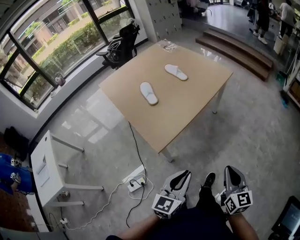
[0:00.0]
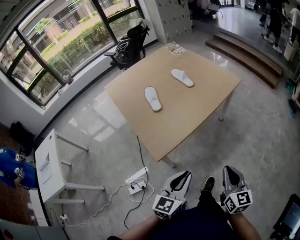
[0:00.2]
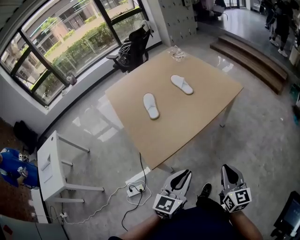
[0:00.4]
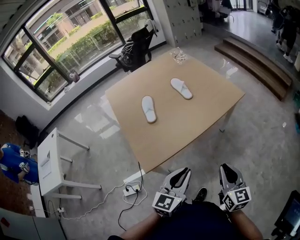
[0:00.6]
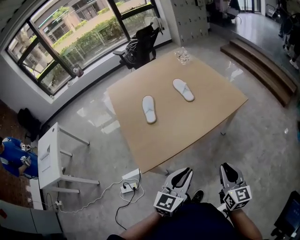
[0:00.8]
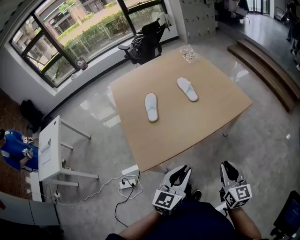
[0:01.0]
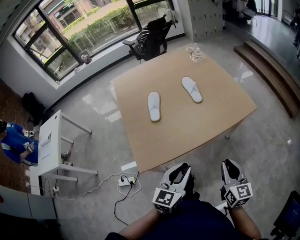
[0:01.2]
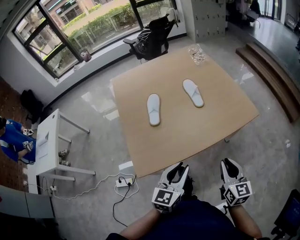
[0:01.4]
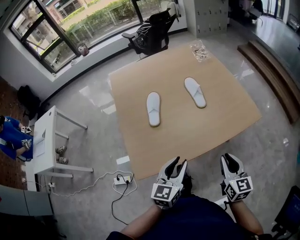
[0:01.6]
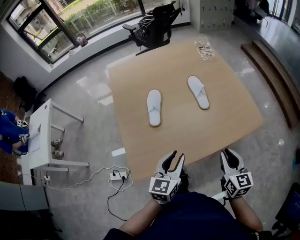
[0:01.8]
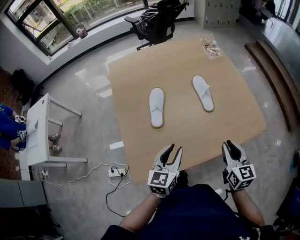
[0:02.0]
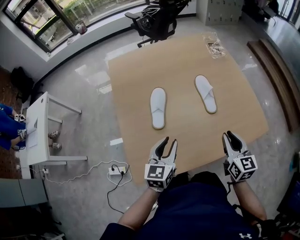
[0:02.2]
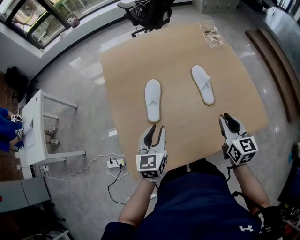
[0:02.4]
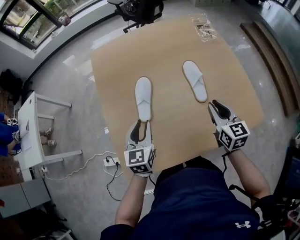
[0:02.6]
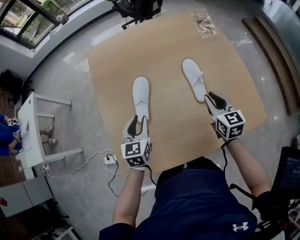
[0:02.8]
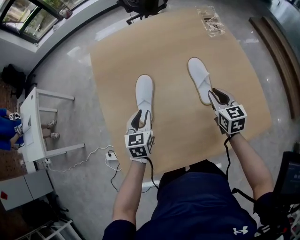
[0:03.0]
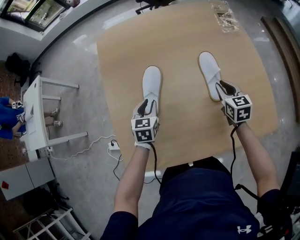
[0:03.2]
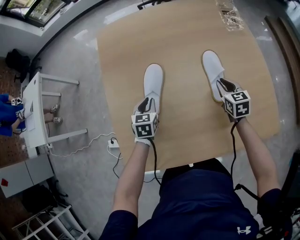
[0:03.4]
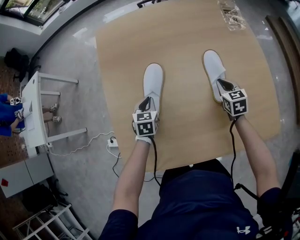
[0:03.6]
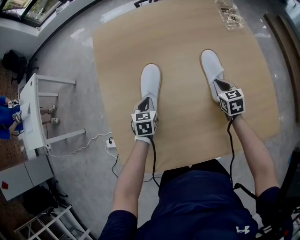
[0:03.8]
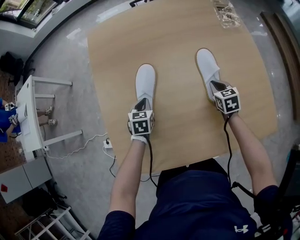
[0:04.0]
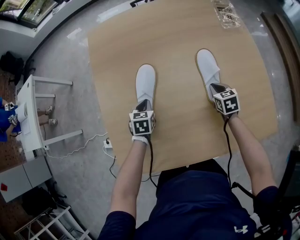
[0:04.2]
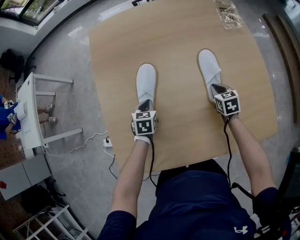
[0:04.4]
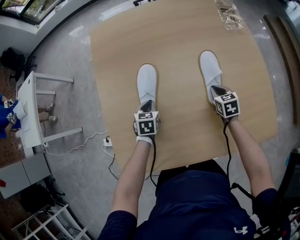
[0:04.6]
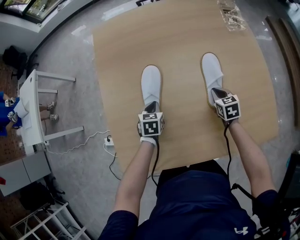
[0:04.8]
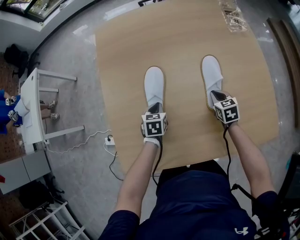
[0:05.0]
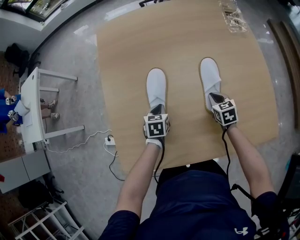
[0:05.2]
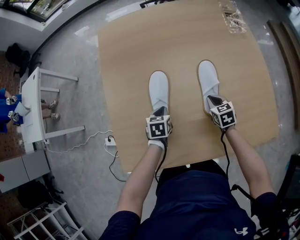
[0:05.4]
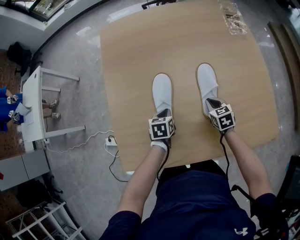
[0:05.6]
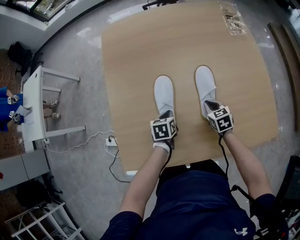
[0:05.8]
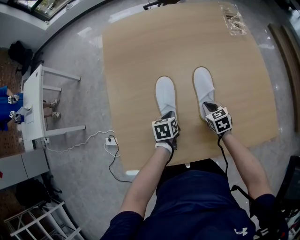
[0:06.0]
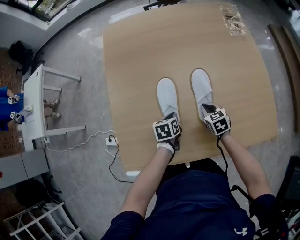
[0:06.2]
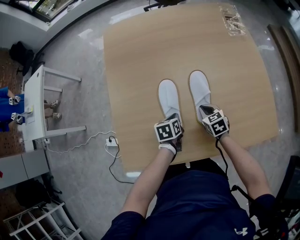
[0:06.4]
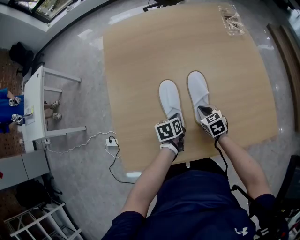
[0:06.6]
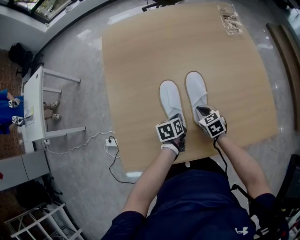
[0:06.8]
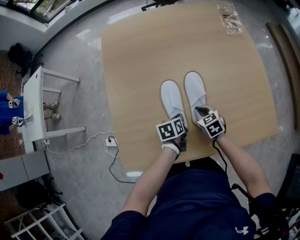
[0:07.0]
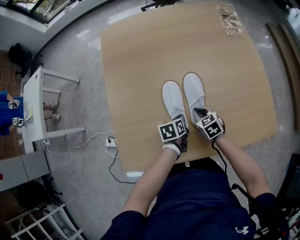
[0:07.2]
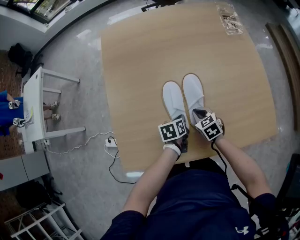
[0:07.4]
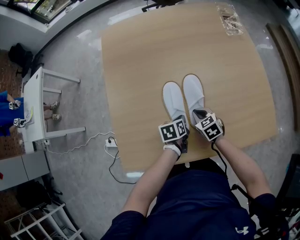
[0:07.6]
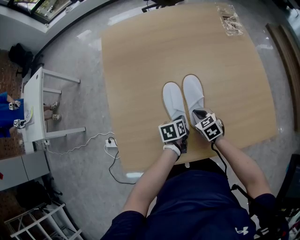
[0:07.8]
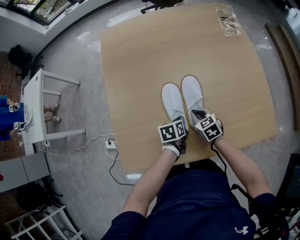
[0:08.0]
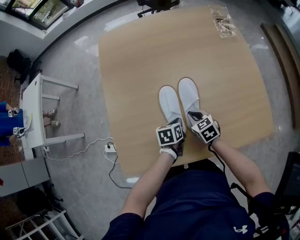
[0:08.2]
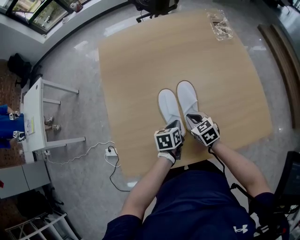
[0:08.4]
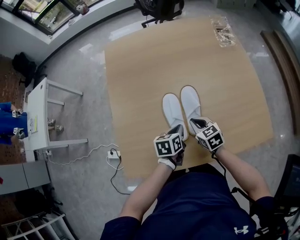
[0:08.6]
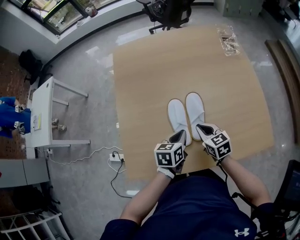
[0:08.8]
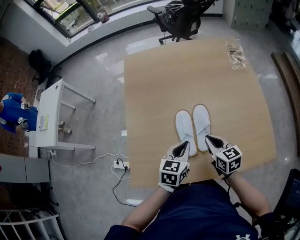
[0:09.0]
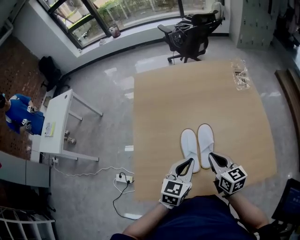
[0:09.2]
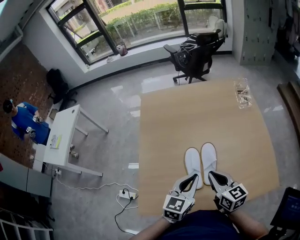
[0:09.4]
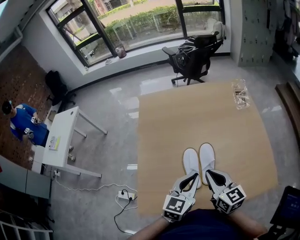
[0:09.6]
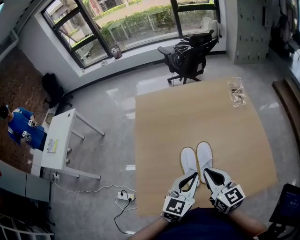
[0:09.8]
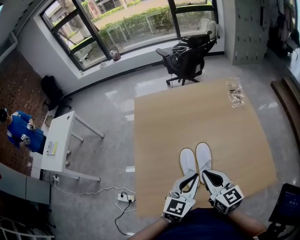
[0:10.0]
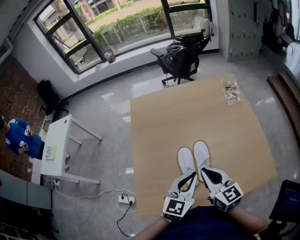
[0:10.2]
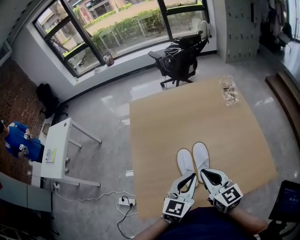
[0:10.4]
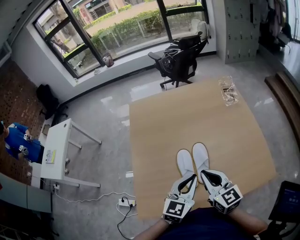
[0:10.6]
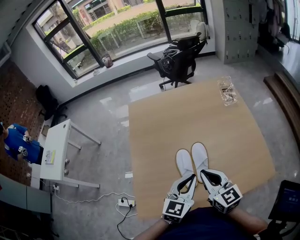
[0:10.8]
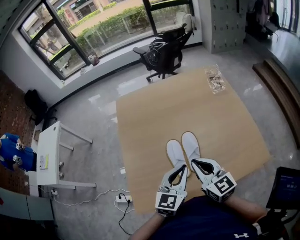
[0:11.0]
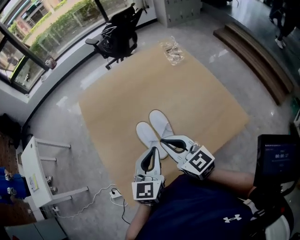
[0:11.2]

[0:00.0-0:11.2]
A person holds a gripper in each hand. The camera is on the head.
0:00.0 to 0:01.6: The right gripper moves about 40 cm, and changes its angle by approximately 30 degrees, while the left gripper changes place by approximately 35 cm, and turns by some 30 degrees.
0:01.6 to 0:03.2: The right gripper heads forward, covering approximately 40 cm, and turns by roughly 30 degrees; the left gripper heads forward, downward and to the left, covering about 40 cm, and rotates roughly 30 degrees.
0:03.2 to 0:04.8: Both grippers travel together downward, some 10 cm. The left gripper closes up.
0:04.8 to 0:06.4: The left gripper is displaced backward and to the right by some 10 cm, and changes its angle by about 30 degrees, while the right gripper heads to the left and backward, covering about 10 cm.
0:06.4 to 0:08.0: The grippers make only small movements.
0:08.0 to 0:09.6: The two grippers go some 30 cm upward. The left gripper points its fingers roughly 30 degrees further upward. The right gripper tips its fingers upward by roughly 40 degrees.
0:09.6 to 0:11.2: There are only small adjustments of the grippers.

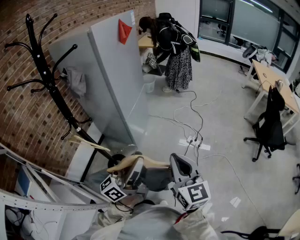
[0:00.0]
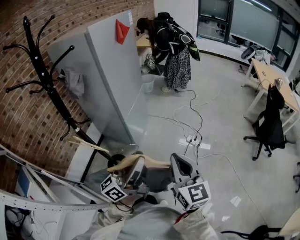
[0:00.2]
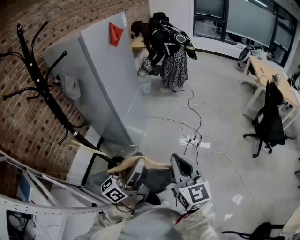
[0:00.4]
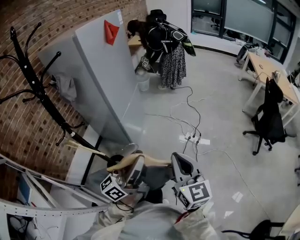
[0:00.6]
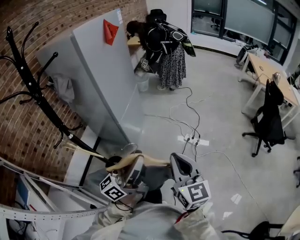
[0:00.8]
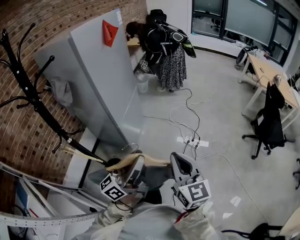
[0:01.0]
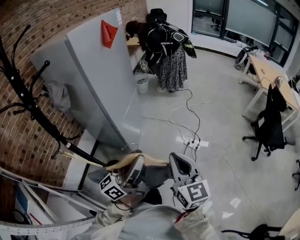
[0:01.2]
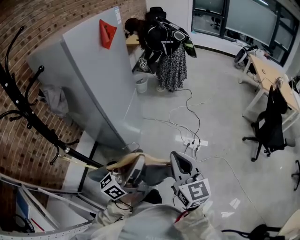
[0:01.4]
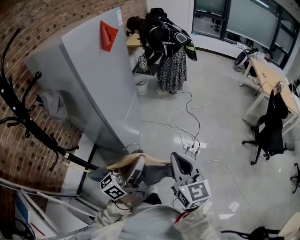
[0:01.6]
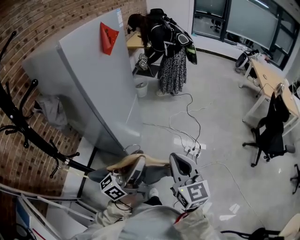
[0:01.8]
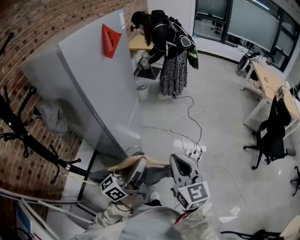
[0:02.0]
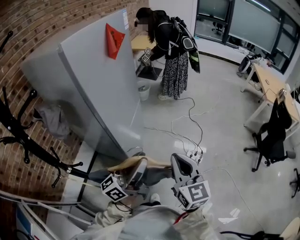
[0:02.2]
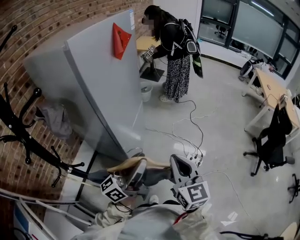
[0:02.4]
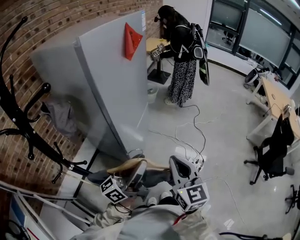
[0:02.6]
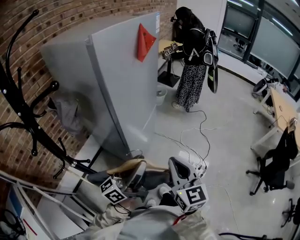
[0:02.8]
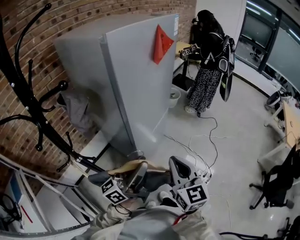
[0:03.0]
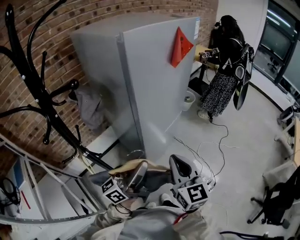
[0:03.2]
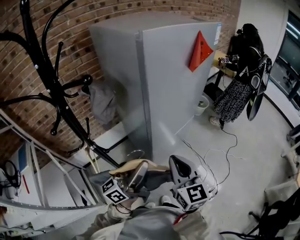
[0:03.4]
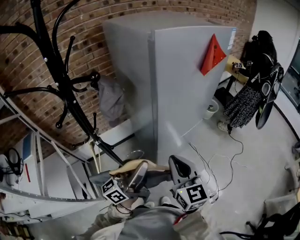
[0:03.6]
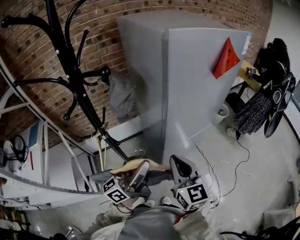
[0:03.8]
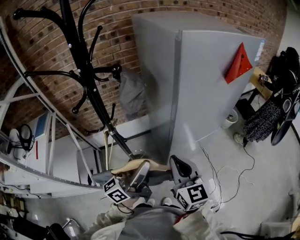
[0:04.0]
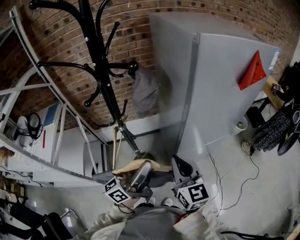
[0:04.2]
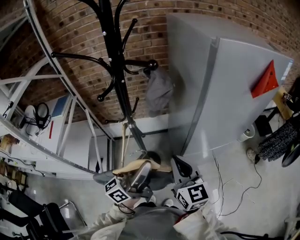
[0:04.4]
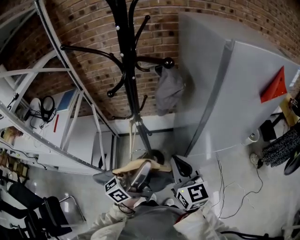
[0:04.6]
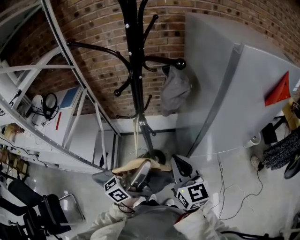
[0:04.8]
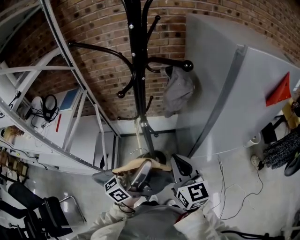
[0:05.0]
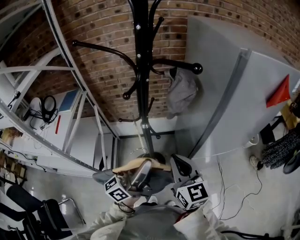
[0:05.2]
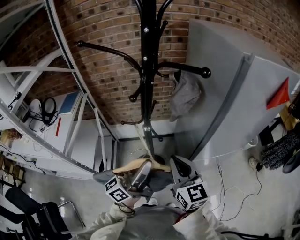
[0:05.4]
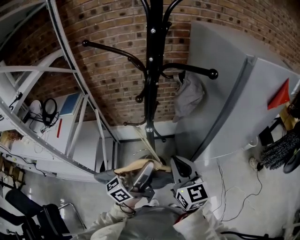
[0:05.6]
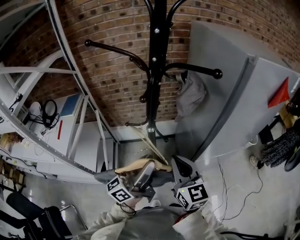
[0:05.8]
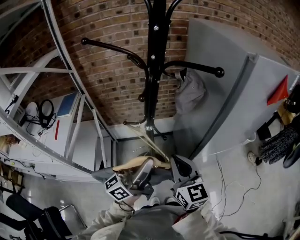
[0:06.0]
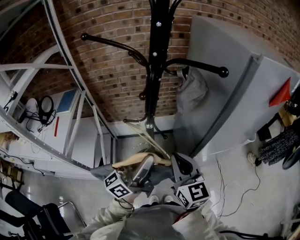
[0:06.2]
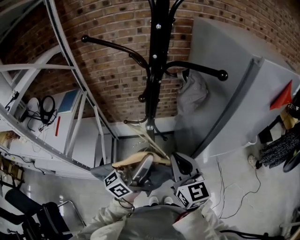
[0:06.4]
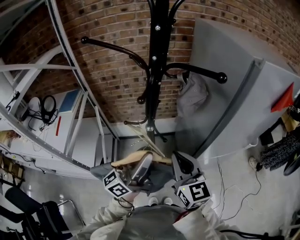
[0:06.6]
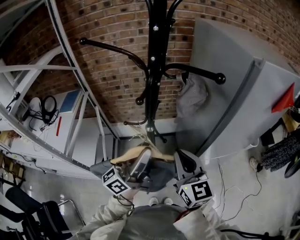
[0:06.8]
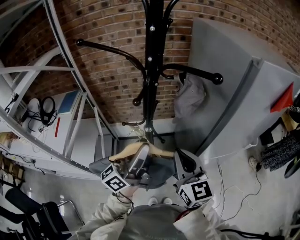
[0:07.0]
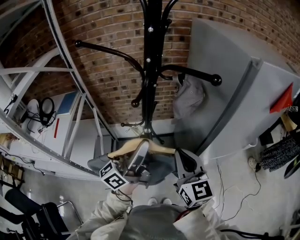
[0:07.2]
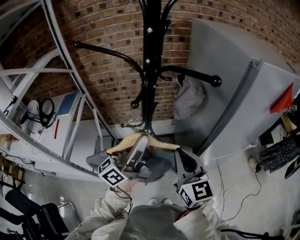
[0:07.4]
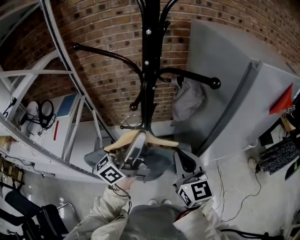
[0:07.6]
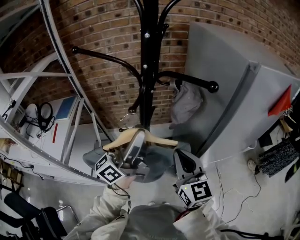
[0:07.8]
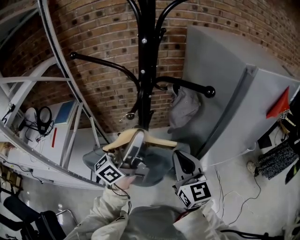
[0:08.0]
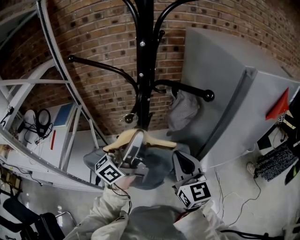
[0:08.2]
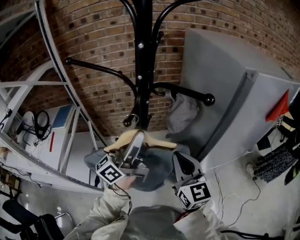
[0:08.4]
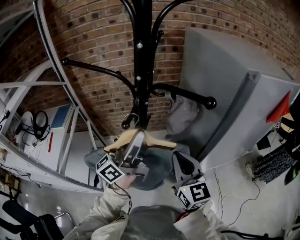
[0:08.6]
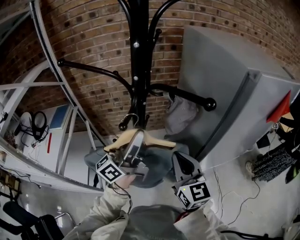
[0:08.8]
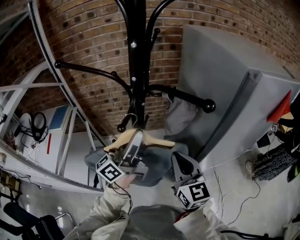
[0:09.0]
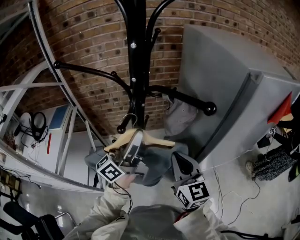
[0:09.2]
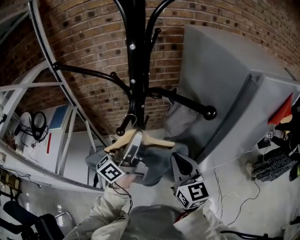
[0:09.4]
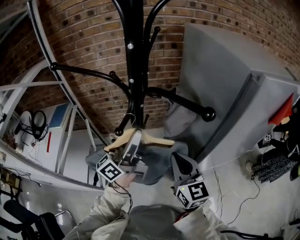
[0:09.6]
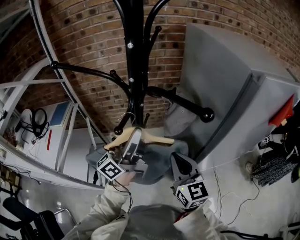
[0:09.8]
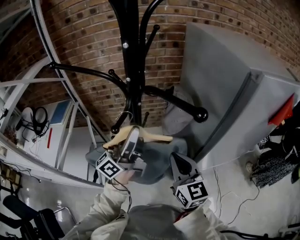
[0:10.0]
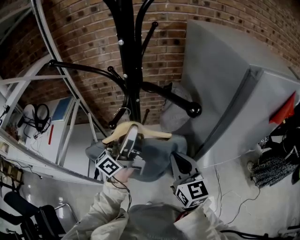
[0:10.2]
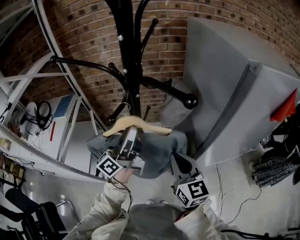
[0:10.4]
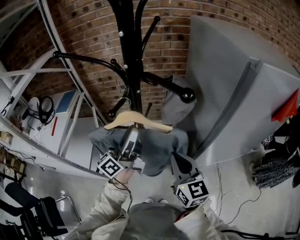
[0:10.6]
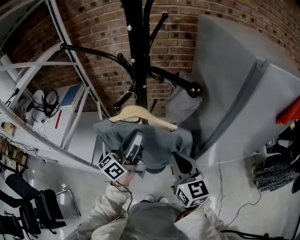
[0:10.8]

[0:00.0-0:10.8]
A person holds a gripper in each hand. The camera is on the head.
0:00.0 to 0:01.6: Both grippers travel together forward, about 20 cm.
0:01.6 to 0:03.0: The right gripper travels forward and to the left by some 20 cm; the left gripper travels to the left and forward by about 15 cm.
0:03.0 to 0:04.6: The left gripper changes place by some 15 cm, and rotates some 50 degrees; the right gripper shifts by about 20 cm, and rotates roughly 50 degrees.
0:04.6 to 0:06.2: The grippers both shift to the left by about 10 cm.
0:06.2 to 0:07.8: The right gripper moves roughly 5 cm, while the left gripper goes some 10 cm upward and forward.
0:07.8 to 0:09.2: Both grippers move forward, roughly 5 cm.
0:09.2 to 0:10.8: The left gripper heads downward, covering roughly 5 cm. The right gripper moves some 5 cm.

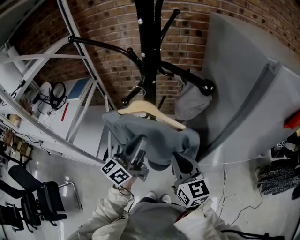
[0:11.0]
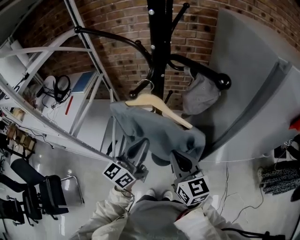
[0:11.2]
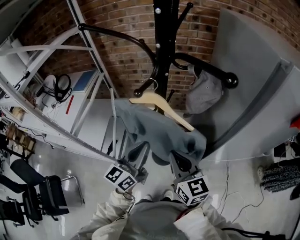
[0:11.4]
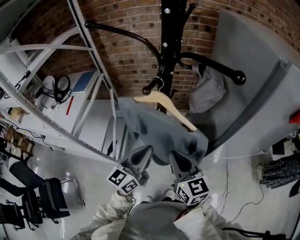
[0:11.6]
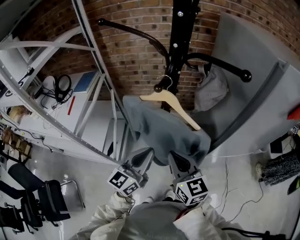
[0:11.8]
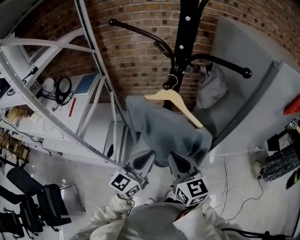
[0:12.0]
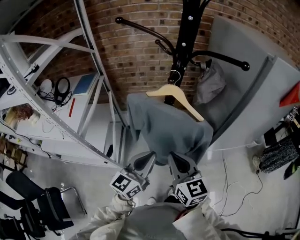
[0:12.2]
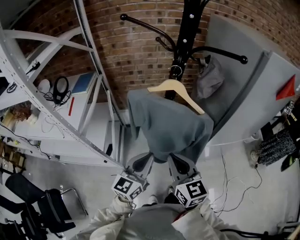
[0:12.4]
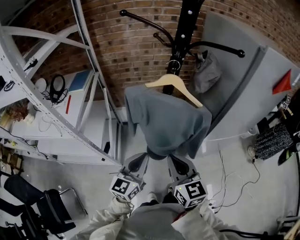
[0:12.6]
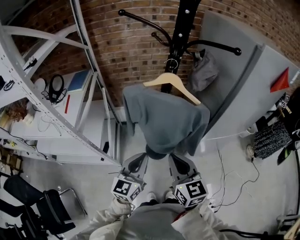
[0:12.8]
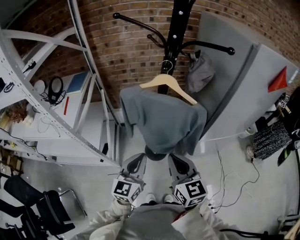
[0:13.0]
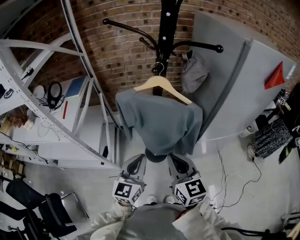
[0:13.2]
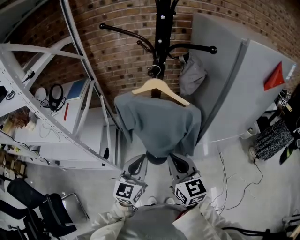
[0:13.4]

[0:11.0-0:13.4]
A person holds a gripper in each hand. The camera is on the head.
0:11.0 to 0:12.2: The left gripper shifts some 15 cm backward and to the left, and turns by roughly 20 degrees; the right gripper heads to the left and backward, covering about 15 cm.
0:12.2 to 0:13.4: The grippers both shift backward by some 5 cm.
